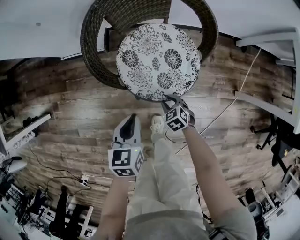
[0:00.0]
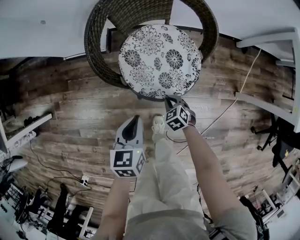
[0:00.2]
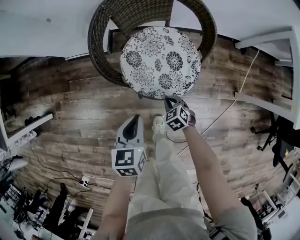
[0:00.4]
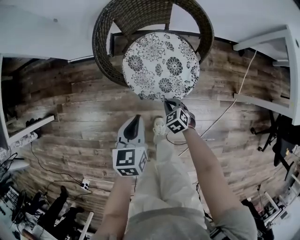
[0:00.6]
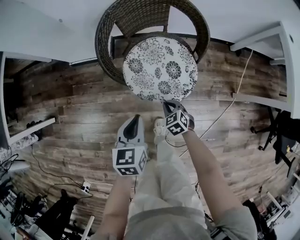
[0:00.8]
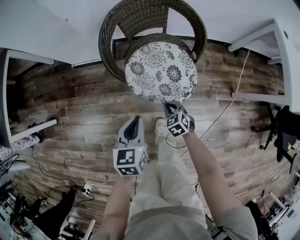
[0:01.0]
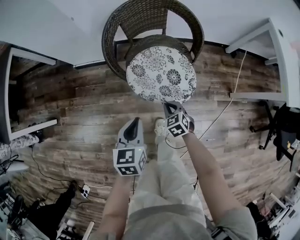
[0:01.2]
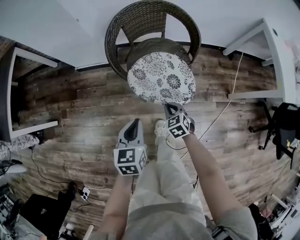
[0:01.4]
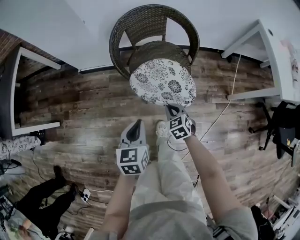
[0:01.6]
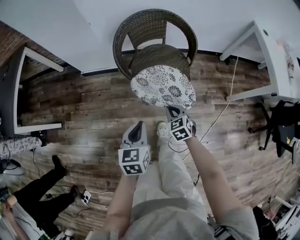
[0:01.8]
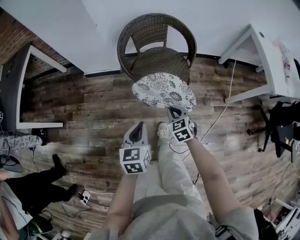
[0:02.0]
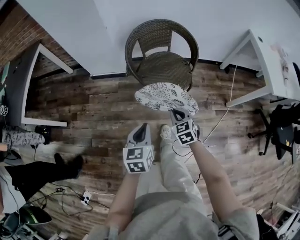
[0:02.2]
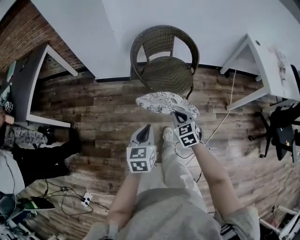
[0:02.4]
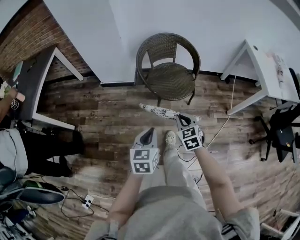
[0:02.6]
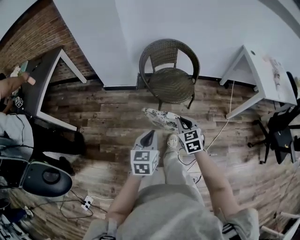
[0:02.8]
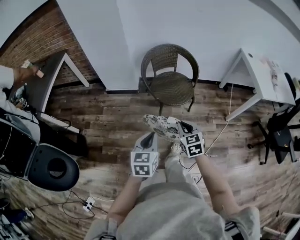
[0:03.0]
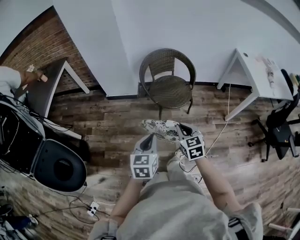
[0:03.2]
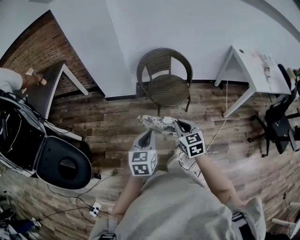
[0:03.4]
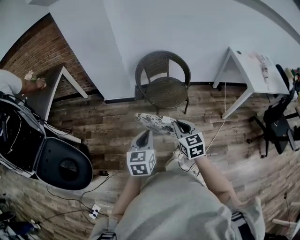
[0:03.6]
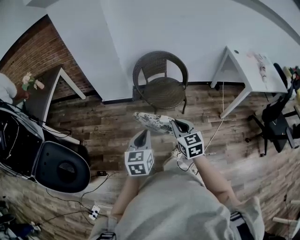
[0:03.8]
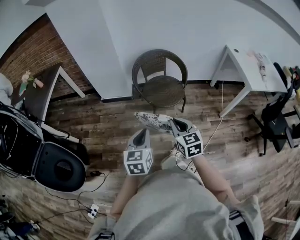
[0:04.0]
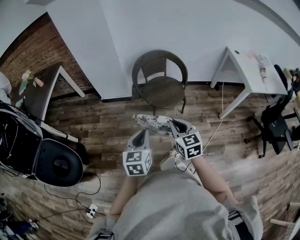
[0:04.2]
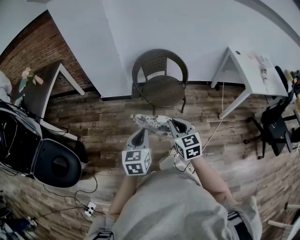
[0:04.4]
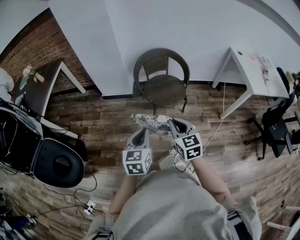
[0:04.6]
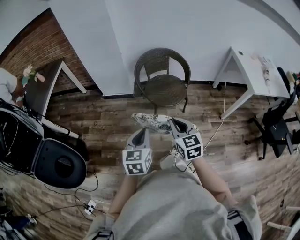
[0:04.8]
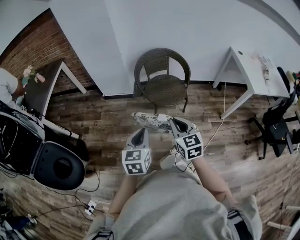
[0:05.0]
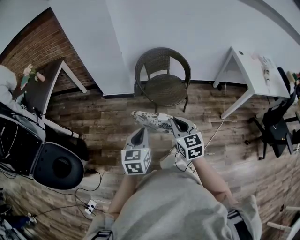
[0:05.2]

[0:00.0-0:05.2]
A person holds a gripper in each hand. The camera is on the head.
0.0 to 1.8 s: The right gripper shifts approximately 25 cm upward and backward, swivels roughly 20 degrees, and closes up, while the left gripper is displaced backward and upward by approximately 25 cm.
1.8 to 3.4 s: The left gripper moves backward and upward, some 30 cm. The right gripper travels upward and backward by about 35 cm, and swivels about 20 degrees.
3.4 to 5.2 s: There are only small adjustments of the grippers.

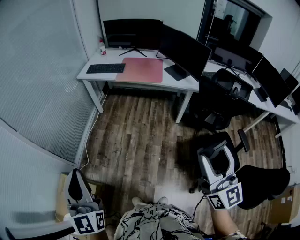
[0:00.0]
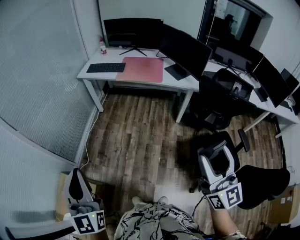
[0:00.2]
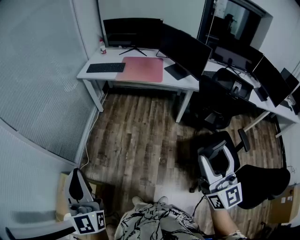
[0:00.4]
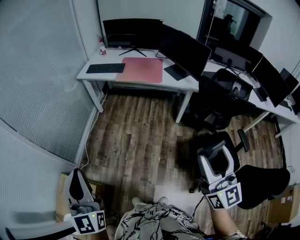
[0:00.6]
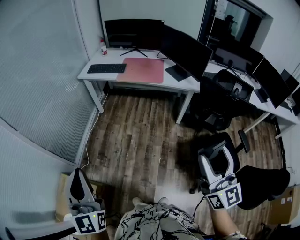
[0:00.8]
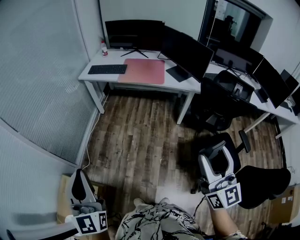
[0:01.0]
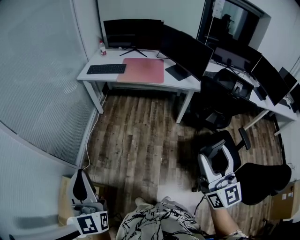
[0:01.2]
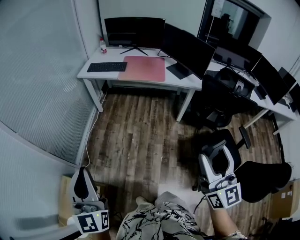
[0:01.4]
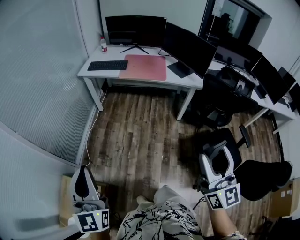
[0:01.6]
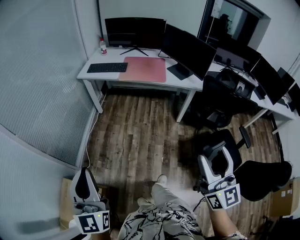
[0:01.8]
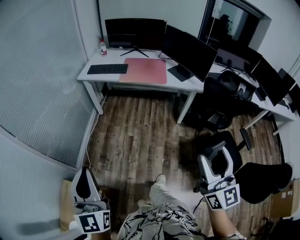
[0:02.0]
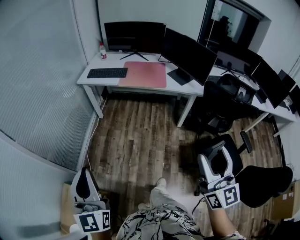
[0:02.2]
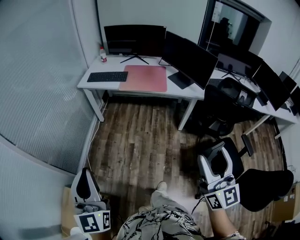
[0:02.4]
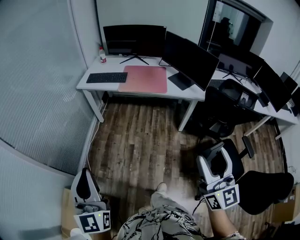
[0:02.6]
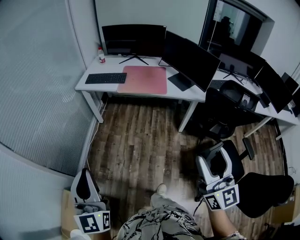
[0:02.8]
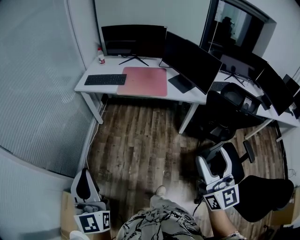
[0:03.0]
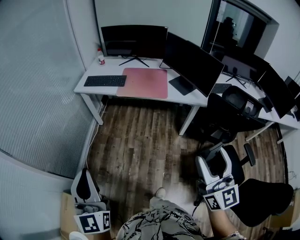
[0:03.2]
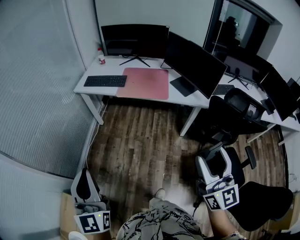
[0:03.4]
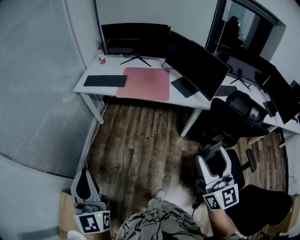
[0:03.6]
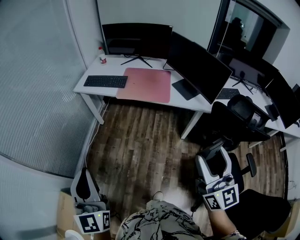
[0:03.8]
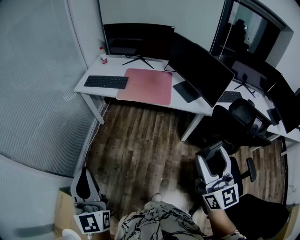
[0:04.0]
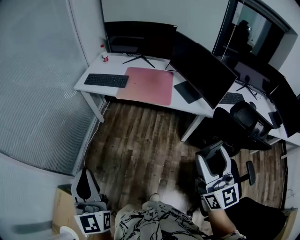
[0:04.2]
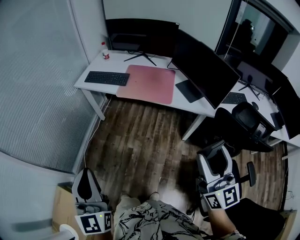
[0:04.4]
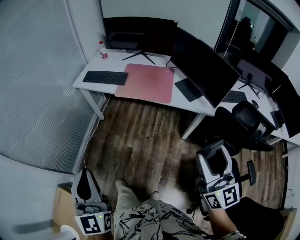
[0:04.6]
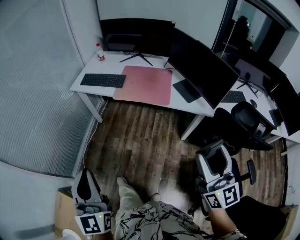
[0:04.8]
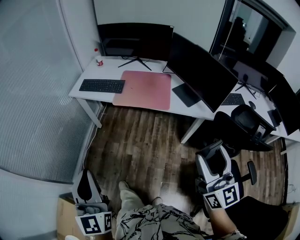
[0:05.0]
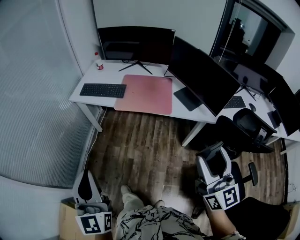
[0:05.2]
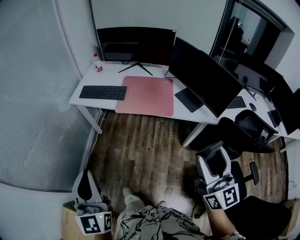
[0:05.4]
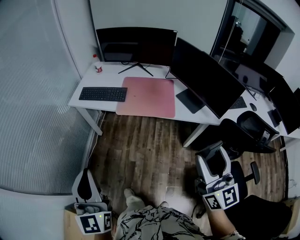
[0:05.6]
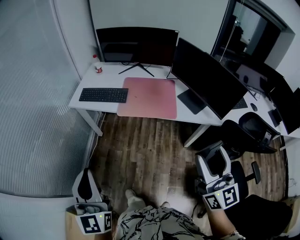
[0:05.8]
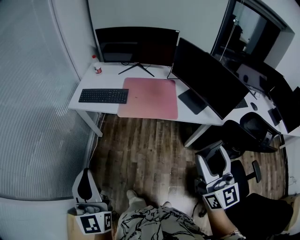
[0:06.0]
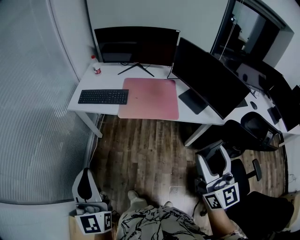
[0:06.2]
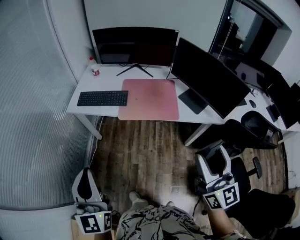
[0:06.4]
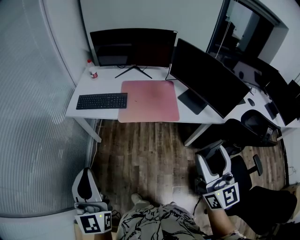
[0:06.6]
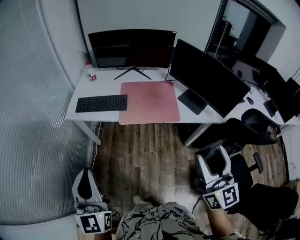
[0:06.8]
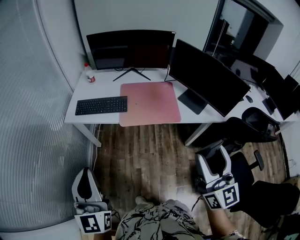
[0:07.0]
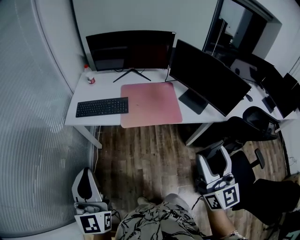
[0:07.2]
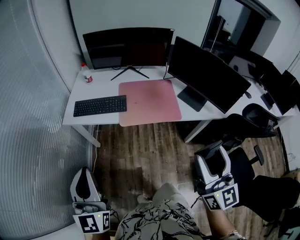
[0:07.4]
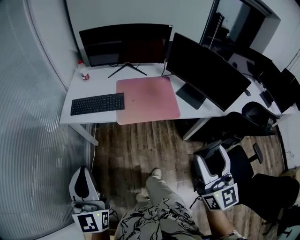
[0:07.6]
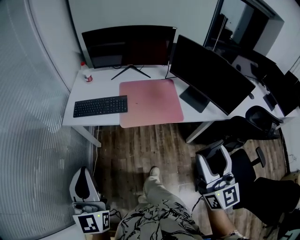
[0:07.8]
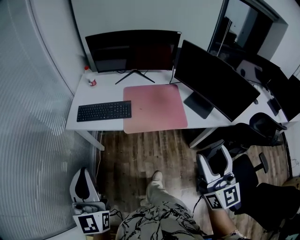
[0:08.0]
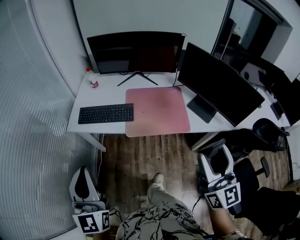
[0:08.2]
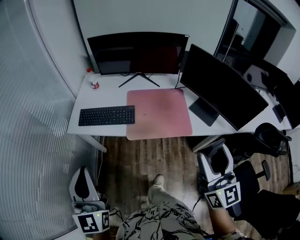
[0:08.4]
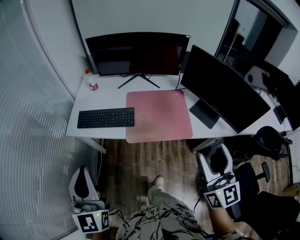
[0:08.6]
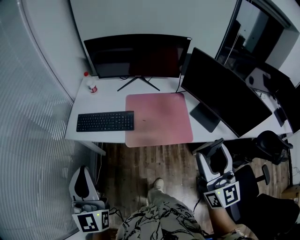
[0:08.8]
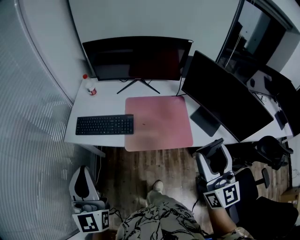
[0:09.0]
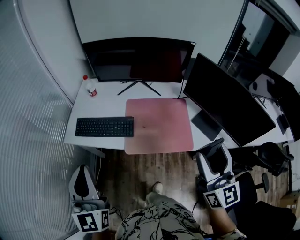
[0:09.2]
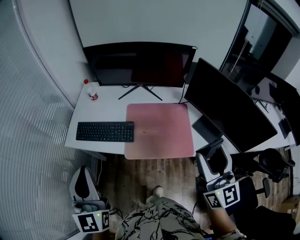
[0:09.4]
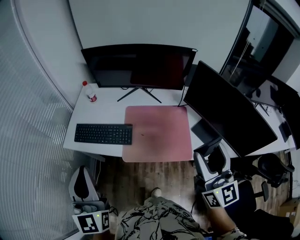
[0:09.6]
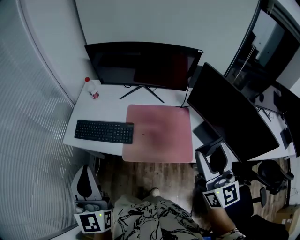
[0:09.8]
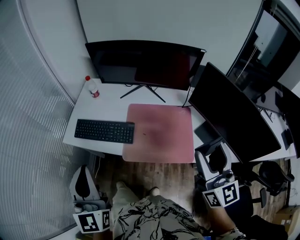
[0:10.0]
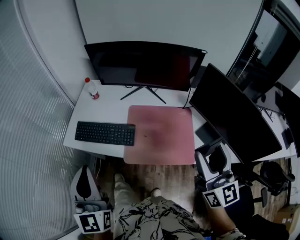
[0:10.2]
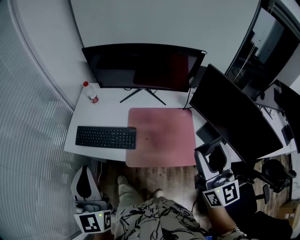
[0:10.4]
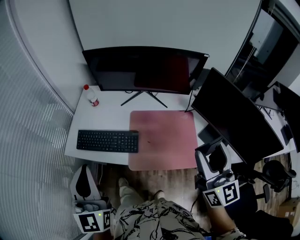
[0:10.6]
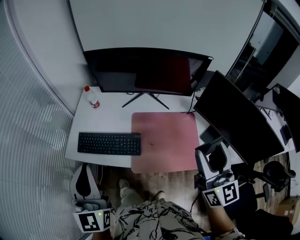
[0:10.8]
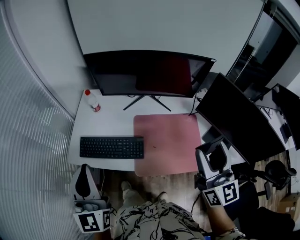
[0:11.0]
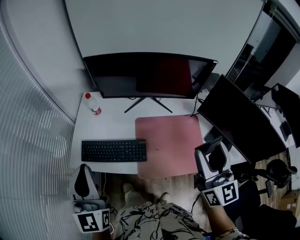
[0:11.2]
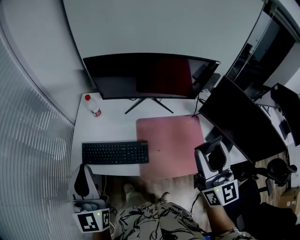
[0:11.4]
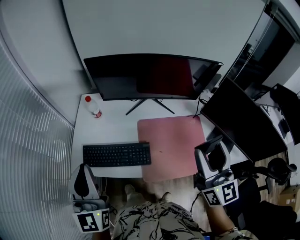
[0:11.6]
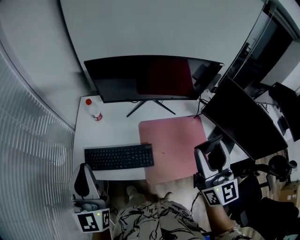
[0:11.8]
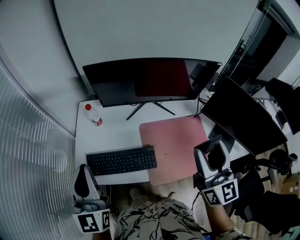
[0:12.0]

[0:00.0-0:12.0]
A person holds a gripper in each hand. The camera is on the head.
0.0 to 1.6 s: Both grippers travel together to the left, about 5 cm.
1.6 to 3.0 s: Both grippers move forward, roughly 15 cm.
3.0 to 4.4 s: The two grippers go some 15 cm forward and to the right.
4.4 to 6.0 s: The two grippers go about 20 cm forward and to the left.
6.0 to 7.6 s: The right gripper goes some 10 cm to the left. Meanwhile the left gripper is displaced forward and to the left by approximately 15 cm.
7.6 to 9.0 s: Both grippers move forward, approximately 20 cm.
9.0 to 10.4 s: The two grippers go approximately 10 cm forward.
10.4 to 12.0 s: The left gripper heads forward and to the left, covering roughly 25 cm; the right gripper goes some 20 cm to the left and forward.

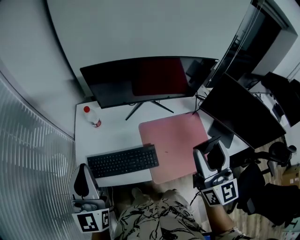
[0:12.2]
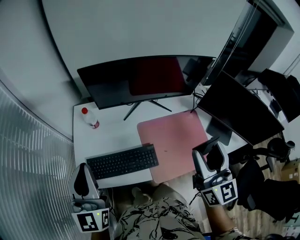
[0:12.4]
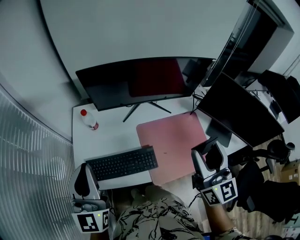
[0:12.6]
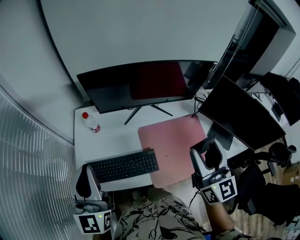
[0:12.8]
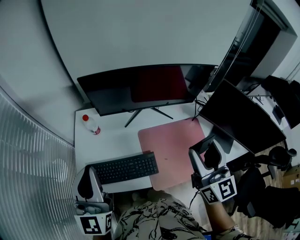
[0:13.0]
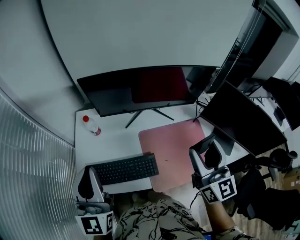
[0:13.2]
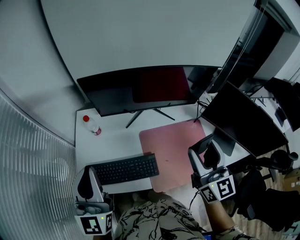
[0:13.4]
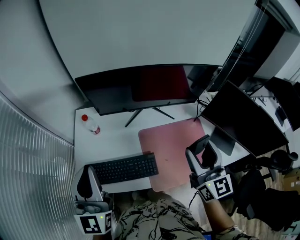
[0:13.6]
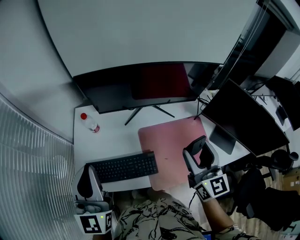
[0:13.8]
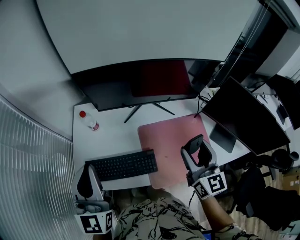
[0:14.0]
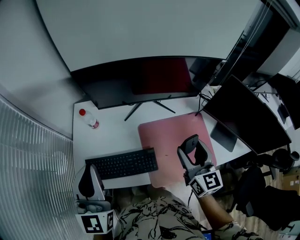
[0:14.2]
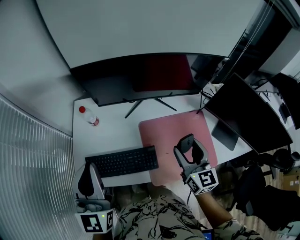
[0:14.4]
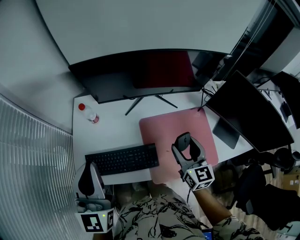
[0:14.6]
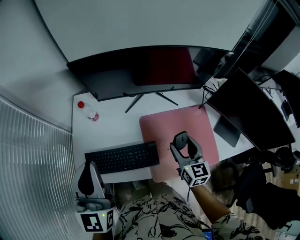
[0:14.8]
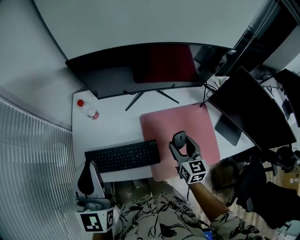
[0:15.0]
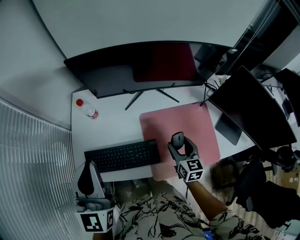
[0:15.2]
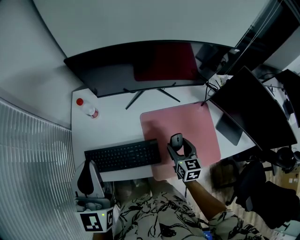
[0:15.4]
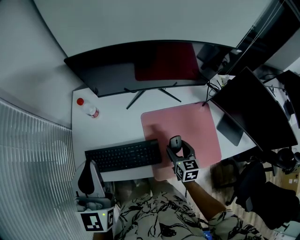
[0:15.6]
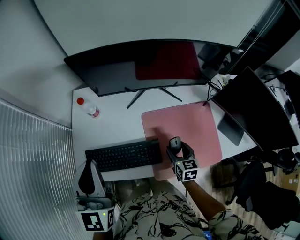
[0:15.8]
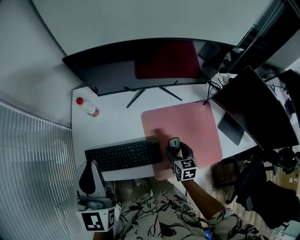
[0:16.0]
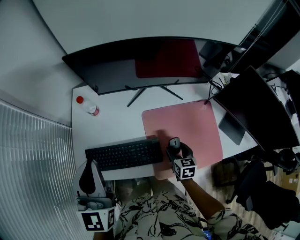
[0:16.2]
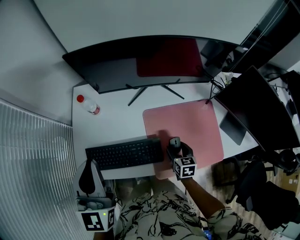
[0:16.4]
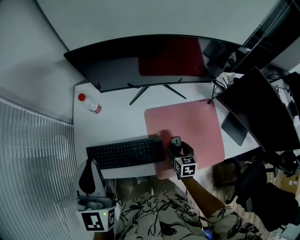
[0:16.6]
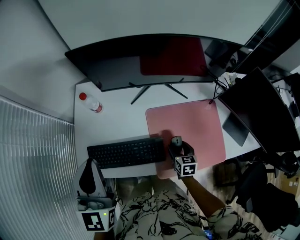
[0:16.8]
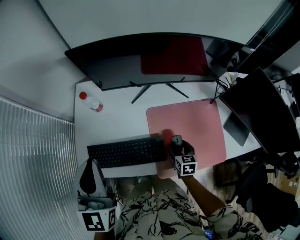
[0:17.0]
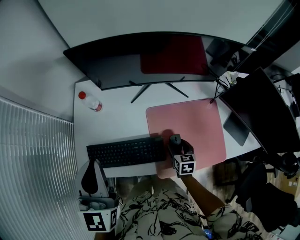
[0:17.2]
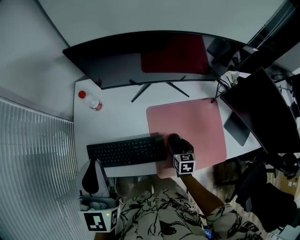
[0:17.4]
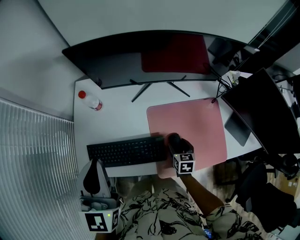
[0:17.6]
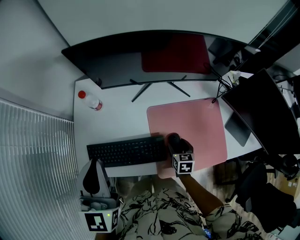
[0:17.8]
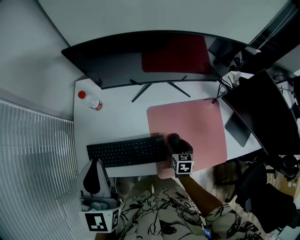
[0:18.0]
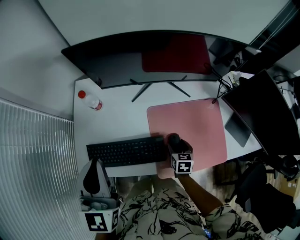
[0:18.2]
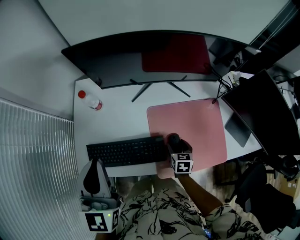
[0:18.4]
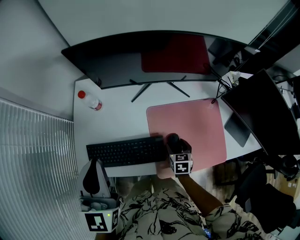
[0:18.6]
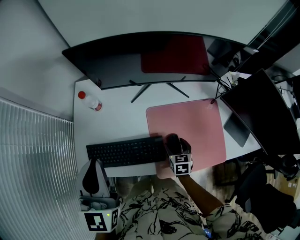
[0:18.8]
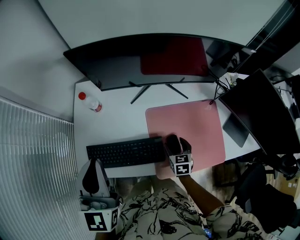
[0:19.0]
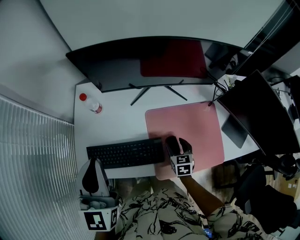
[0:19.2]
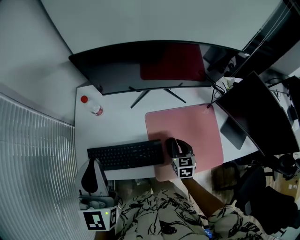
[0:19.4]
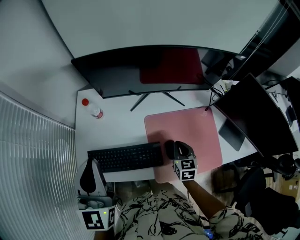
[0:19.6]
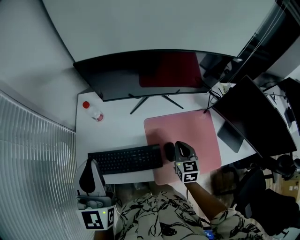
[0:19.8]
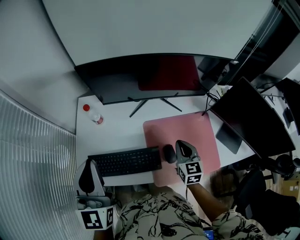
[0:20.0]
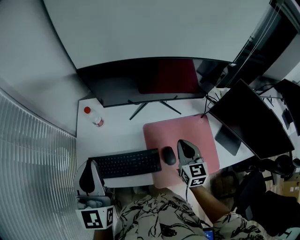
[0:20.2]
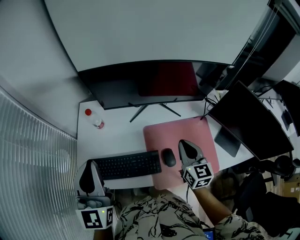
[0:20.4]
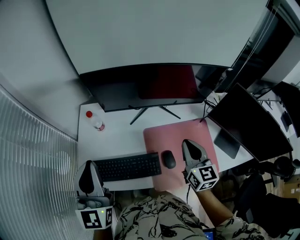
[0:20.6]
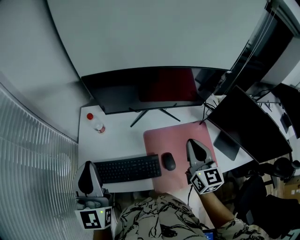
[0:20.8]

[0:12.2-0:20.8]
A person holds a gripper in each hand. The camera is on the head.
12.2 to 13.6 s: The right gripper is displaced forward by some 5 cm; the left gripper moves some 5 cm.
13.6 to 15.0 s: The right gripper heads downward, covering some 20 cm, and changes its angle by some 20 degrees.
15.0 to 16.6 s: The right gripper moves downward, approximately 15 cm, and swivels approximately 20 degrees.
16.6 to 18.0 s: There are only small adjustments of the grippers.
18.0 to 19.4 s: The right gripper travels upward by approximately 5 cm, and closes.
19.4 to 20.8 s: The right gripper moves upward, some 25 cm, and tips its fingers upward by approximately 30 degrees.
